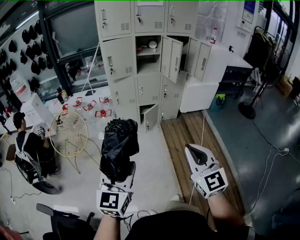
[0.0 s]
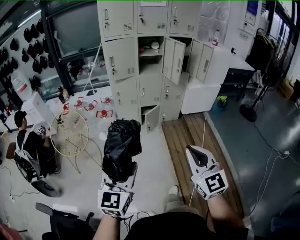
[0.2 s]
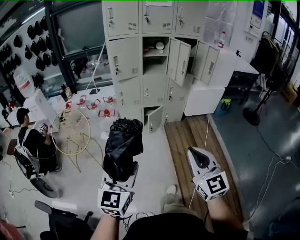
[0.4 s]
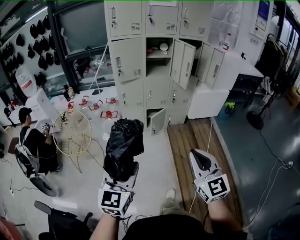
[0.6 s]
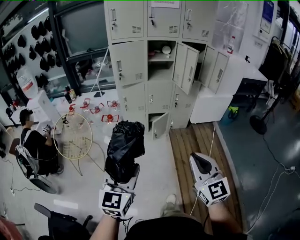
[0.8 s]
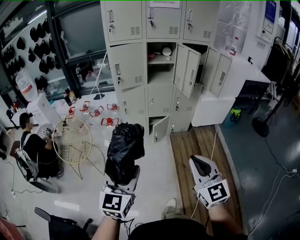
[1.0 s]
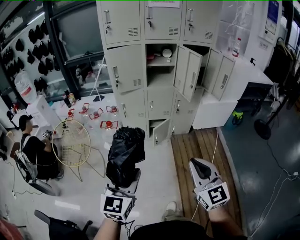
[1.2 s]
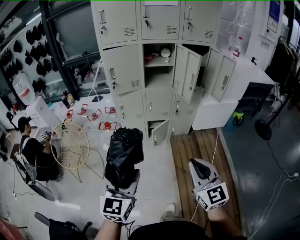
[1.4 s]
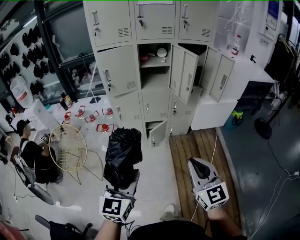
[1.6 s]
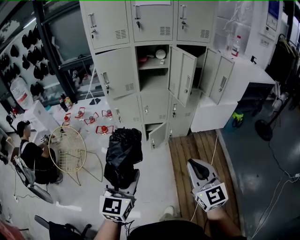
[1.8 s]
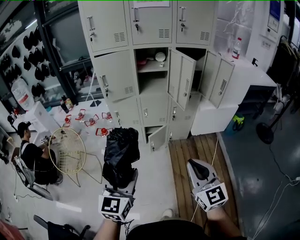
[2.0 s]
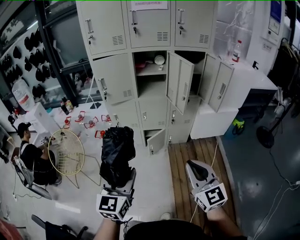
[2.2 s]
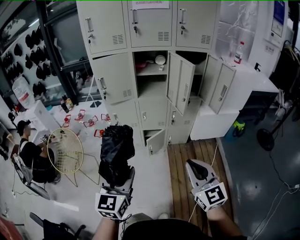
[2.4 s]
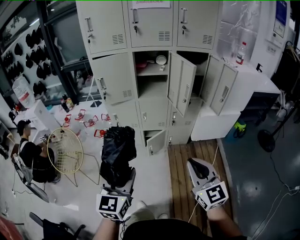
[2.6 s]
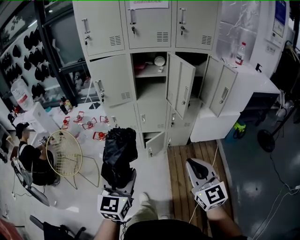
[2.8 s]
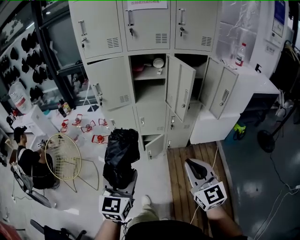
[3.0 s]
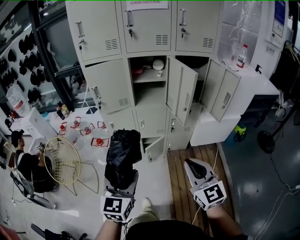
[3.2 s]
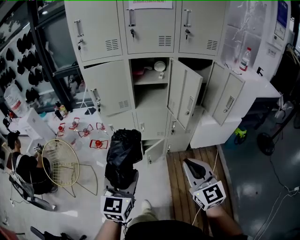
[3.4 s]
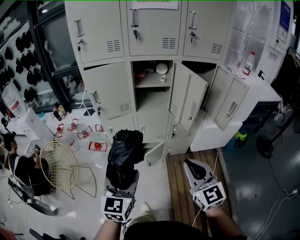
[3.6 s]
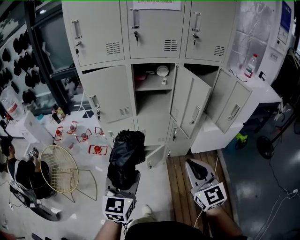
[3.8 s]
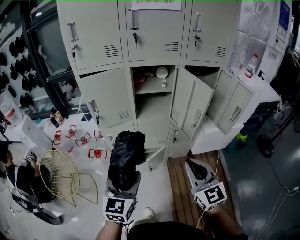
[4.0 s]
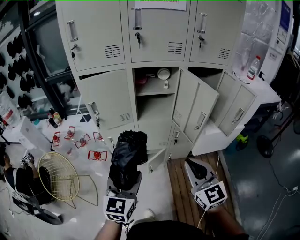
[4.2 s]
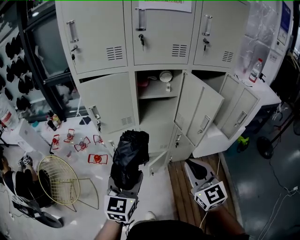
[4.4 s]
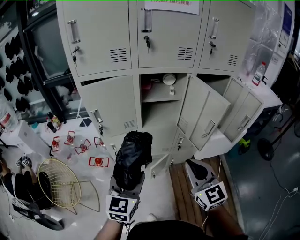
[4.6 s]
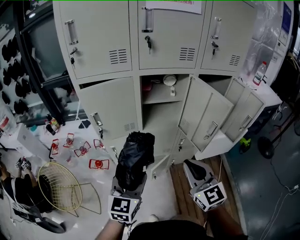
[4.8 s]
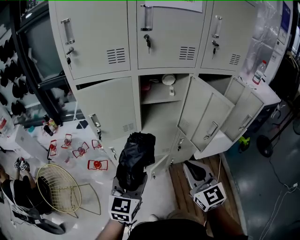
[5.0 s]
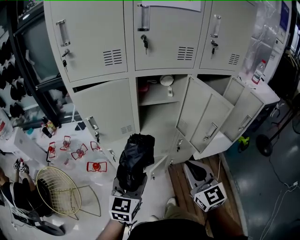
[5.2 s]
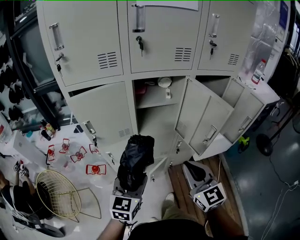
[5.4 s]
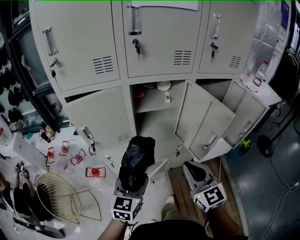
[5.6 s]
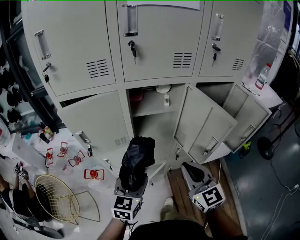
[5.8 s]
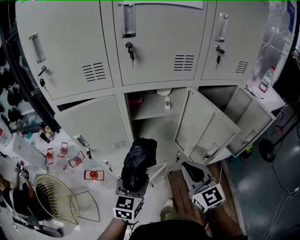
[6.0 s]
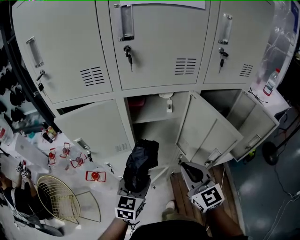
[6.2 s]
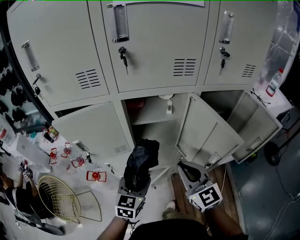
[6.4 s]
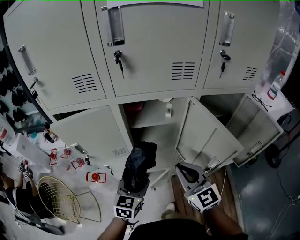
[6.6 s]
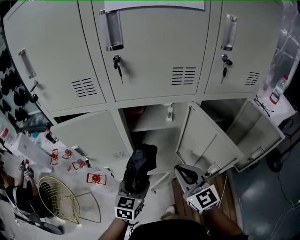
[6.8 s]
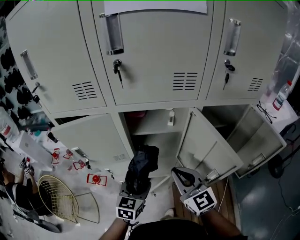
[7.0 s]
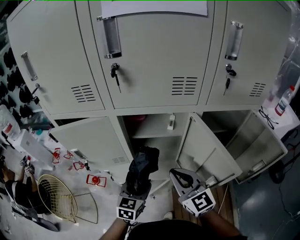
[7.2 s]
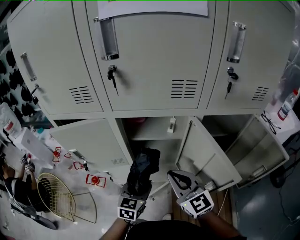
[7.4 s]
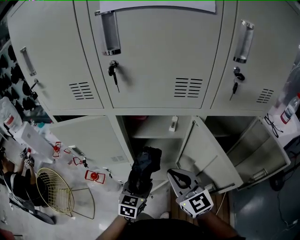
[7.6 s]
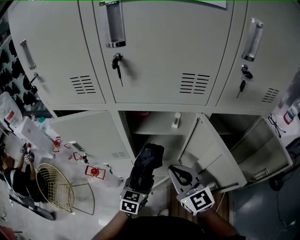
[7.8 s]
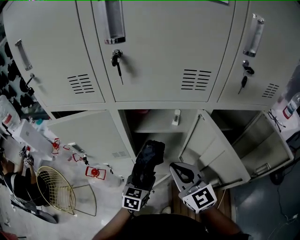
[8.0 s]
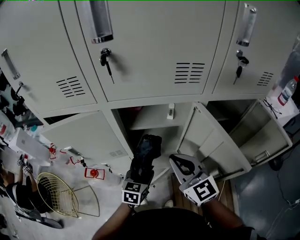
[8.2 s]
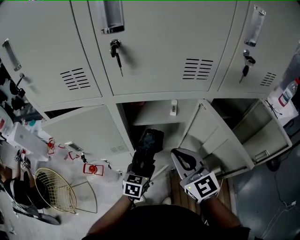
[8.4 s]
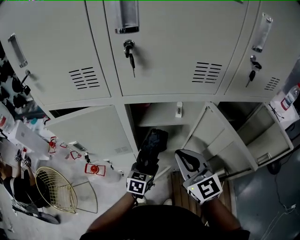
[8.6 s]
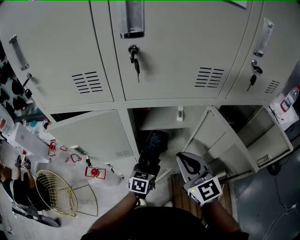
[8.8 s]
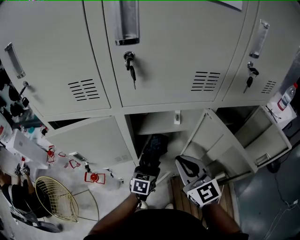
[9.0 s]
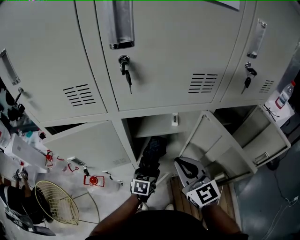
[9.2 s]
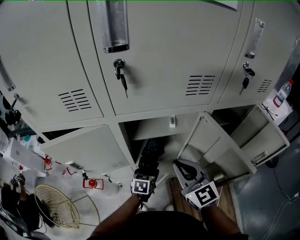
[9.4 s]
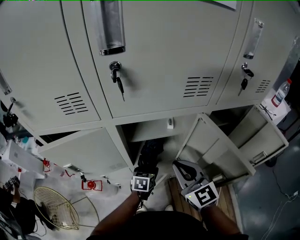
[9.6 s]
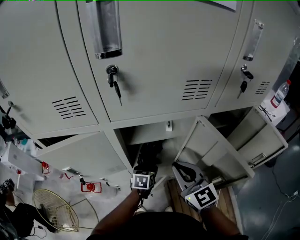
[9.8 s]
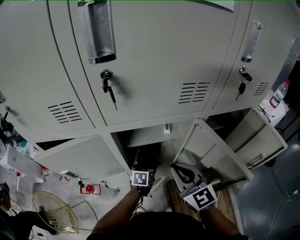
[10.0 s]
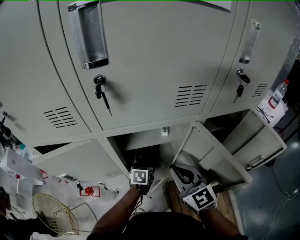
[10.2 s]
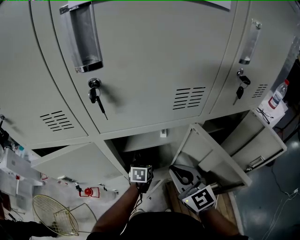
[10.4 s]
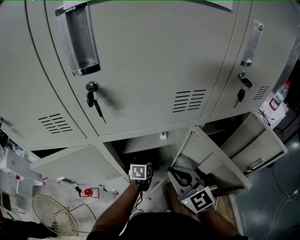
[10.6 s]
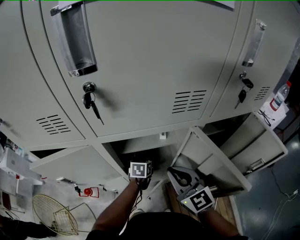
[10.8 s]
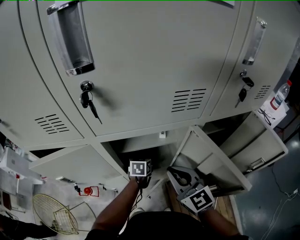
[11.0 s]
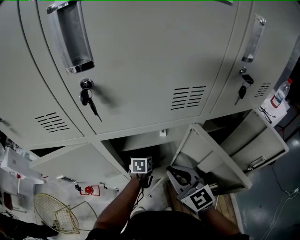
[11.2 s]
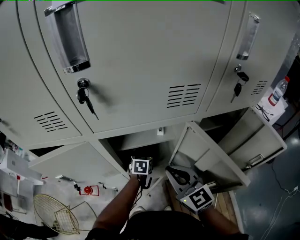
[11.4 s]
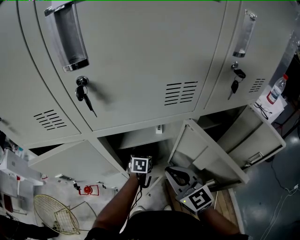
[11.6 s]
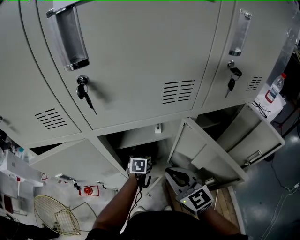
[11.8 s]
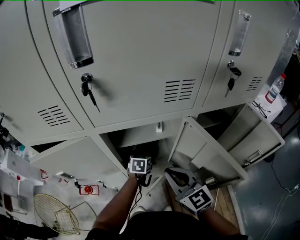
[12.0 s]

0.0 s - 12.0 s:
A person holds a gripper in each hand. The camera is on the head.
0.0 s - 1.6 s: The two grippers go some 25 cm forward.
1.6 s - 3.0 s: Both grippers move forward and to the right, roughly 15 cm.
3.0 s - 4.4 s: Both grippers travel together forward, about 20 cm.
4.4 s - 6.0 s: Both grippers travel together forward, some 20 cm.
6.0 s - 7.6 s: The left gripper is displaced forward, to the right and downward by some 15 cm; the right gripper moves forward, about 10 cm.
7.6 s - 9.0 s: The left gripper heads downward and forward, covering about 10 cm.
9.0 s - 10.4 s: The left gripper heads forward, covering approximately 10 cm.
10.4 s - 12.0 s: There are only small adjustments of the grippers.

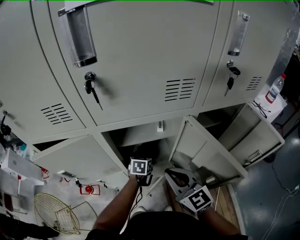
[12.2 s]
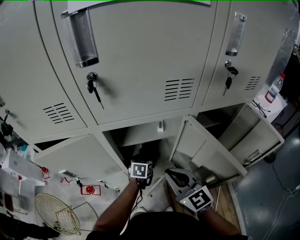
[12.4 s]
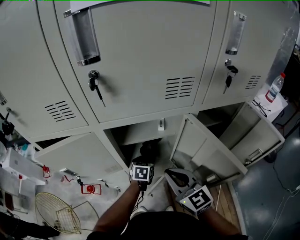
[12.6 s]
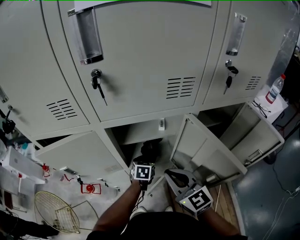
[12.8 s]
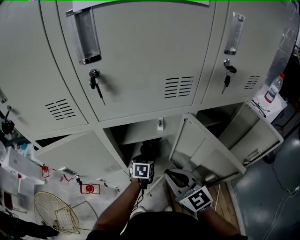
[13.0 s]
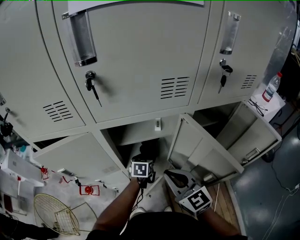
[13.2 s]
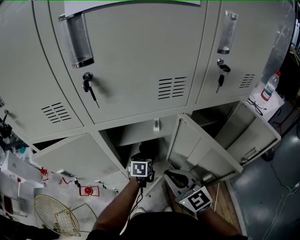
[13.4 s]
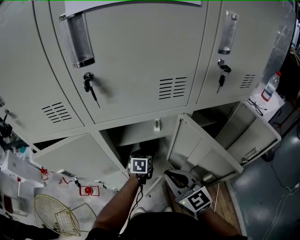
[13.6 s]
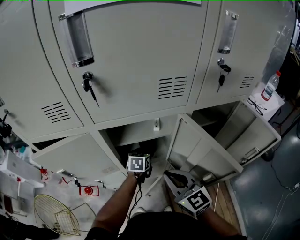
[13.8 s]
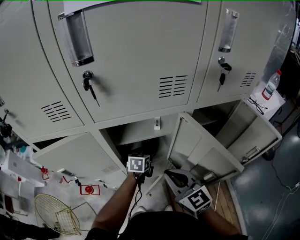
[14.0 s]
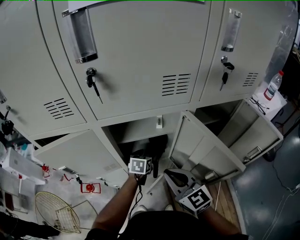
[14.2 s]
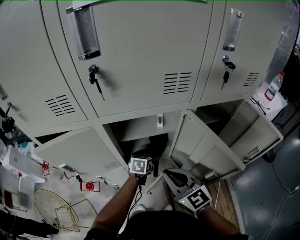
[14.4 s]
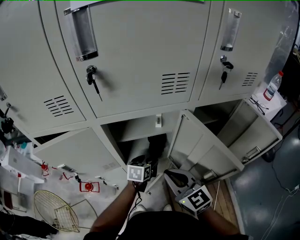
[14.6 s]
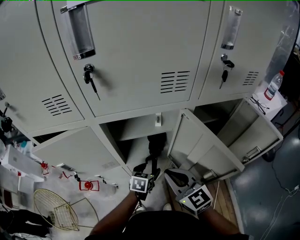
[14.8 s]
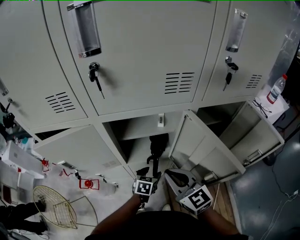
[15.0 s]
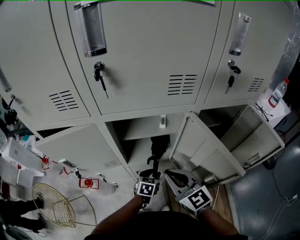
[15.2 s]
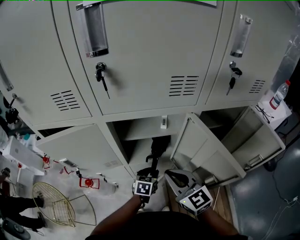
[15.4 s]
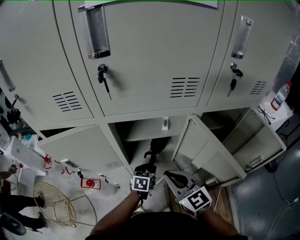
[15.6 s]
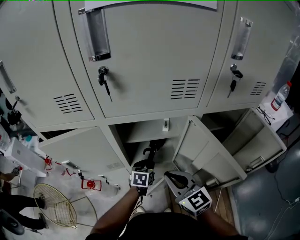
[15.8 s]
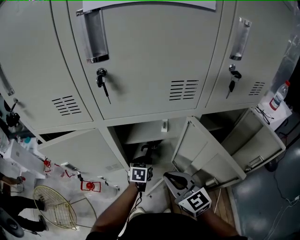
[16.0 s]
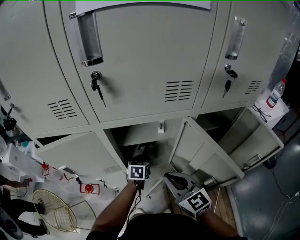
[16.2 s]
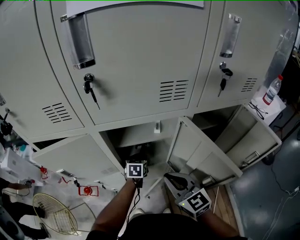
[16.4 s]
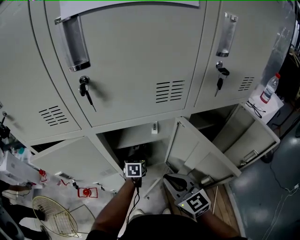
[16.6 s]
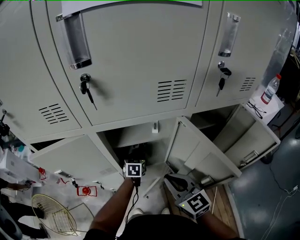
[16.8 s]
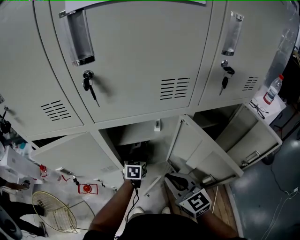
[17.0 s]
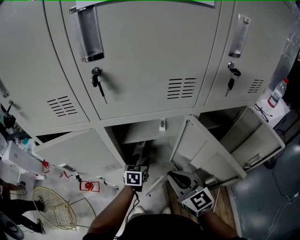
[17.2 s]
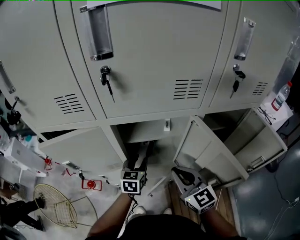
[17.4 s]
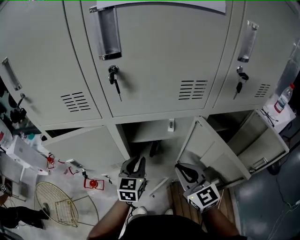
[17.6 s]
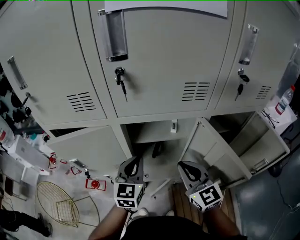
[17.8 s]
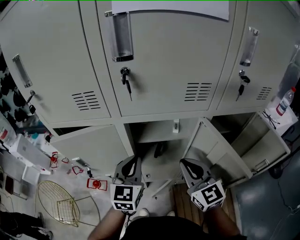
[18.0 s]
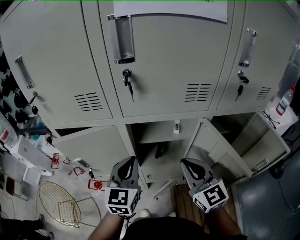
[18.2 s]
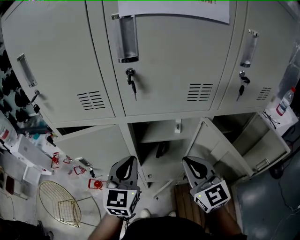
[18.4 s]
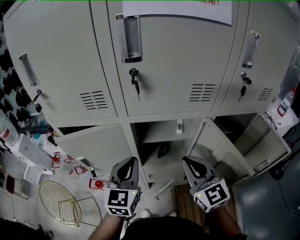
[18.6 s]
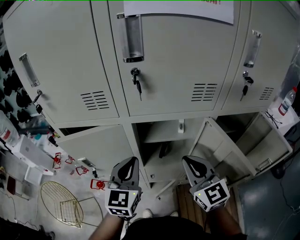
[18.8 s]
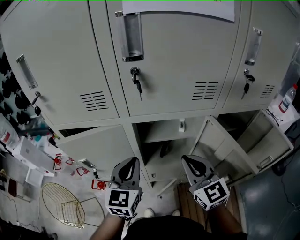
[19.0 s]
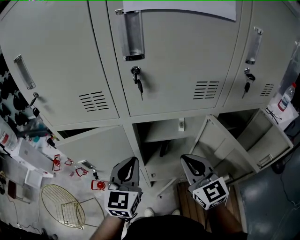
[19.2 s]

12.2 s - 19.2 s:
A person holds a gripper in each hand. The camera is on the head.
12.2 s - 13.6 s: The left gripper closes.
13.6 s - 15.0 s: The left gripper goes some 15 cm backward and downward, and opens up.
15.0 s - 16.4 s: The left gripper heads forward, covering about 10 cm, and closes its fingers.
16.4 s - 17.8 s: The left gripper goes some 25 cm upward and backward, and swivels approximately 30 degrees, while the right gripper changes place by about 5 cm.
17.8 s - 19.2 s: The right gripper ends up roughly 5 cm from where it was. The left gripper shifts some 10 cm upward and to the left.

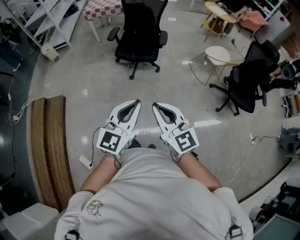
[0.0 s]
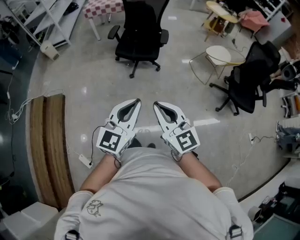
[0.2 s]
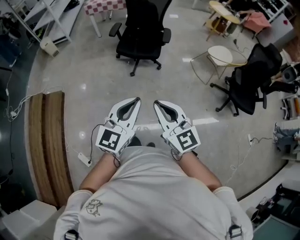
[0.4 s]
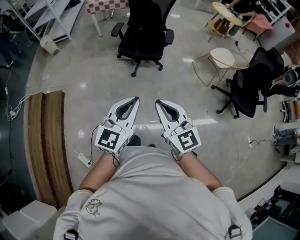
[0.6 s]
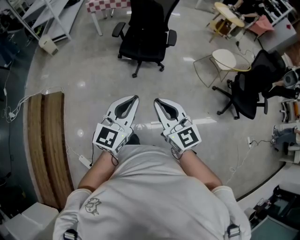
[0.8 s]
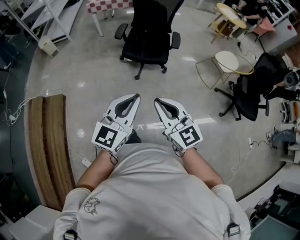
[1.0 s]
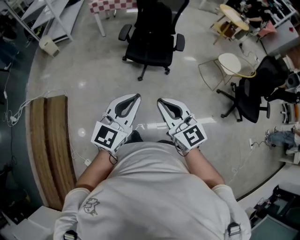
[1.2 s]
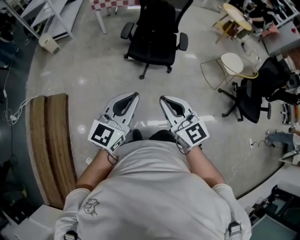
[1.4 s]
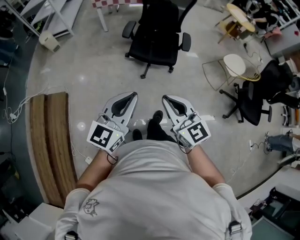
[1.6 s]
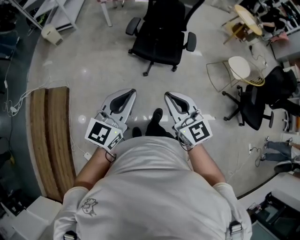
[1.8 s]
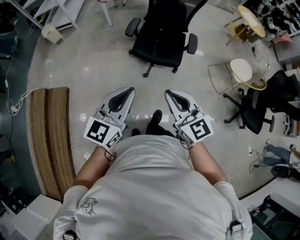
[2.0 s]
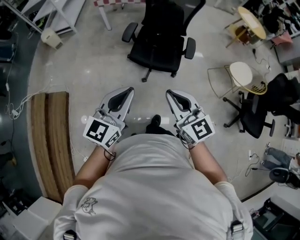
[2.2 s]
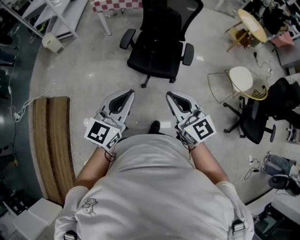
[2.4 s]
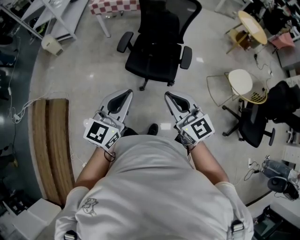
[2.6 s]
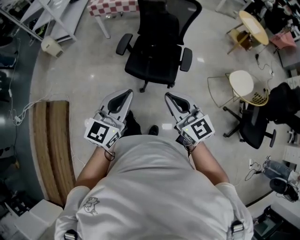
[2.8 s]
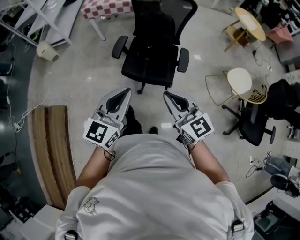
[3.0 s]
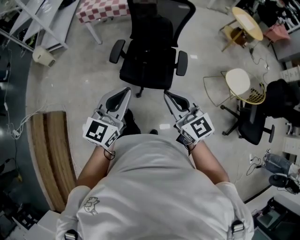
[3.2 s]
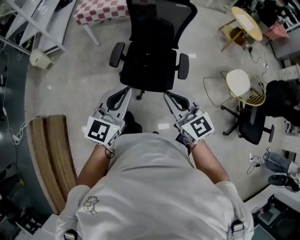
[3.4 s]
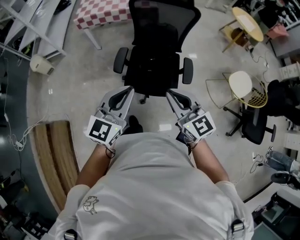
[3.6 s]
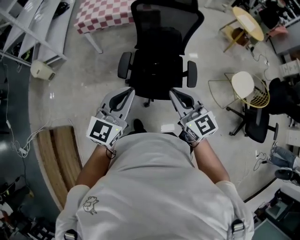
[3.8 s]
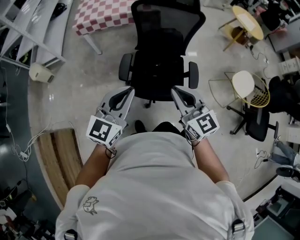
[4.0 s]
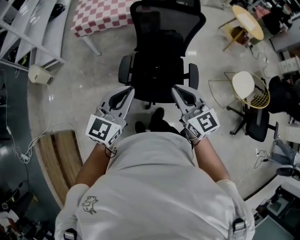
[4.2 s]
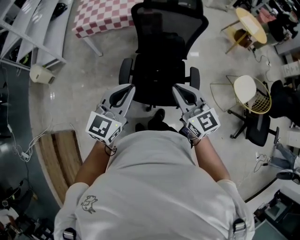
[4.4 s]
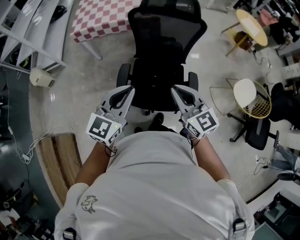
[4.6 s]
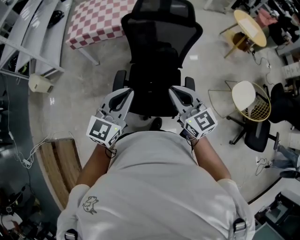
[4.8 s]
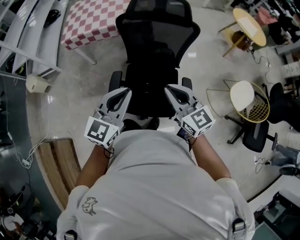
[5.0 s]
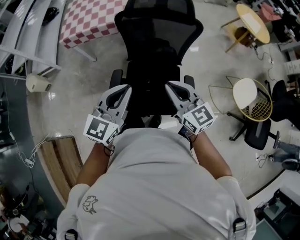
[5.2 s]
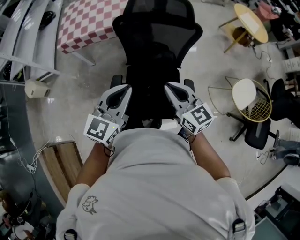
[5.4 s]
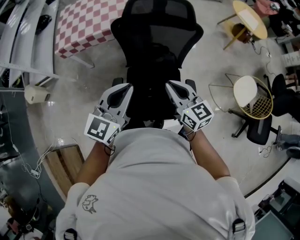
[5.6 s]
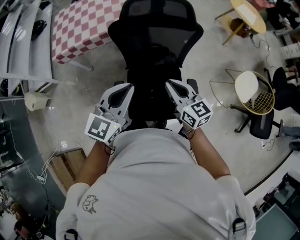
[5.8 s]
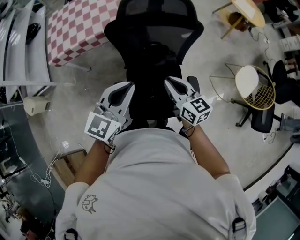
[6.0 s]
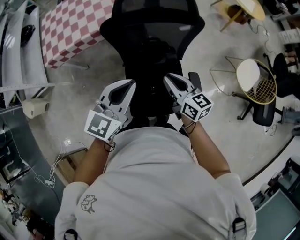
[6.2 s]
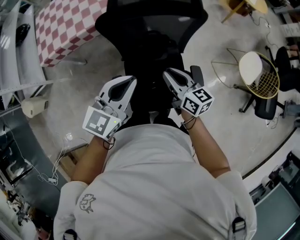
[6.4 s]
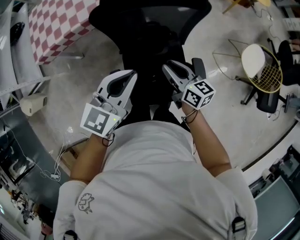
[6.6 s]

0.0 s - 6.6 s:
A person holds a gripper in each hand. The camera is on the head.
0.0 s - 1.6 s: The grippers both shift forward and to the left by some 30 cm.
1.6 s - 3.2 s: The right gripper goes roughly 35 cm forward and to the right. The left gripper moves forward, some 30 cm.
3.2 s - 5.0 s: The two grippers go approximately 35 cm forward.
5.0 s - 6.6 s: The left gripper travels forward by about 20 cm, and swivels approximately 20 degrees. The right gripper shifts approximately 25 cm forward and downward, and rotates about 40 degrees.
